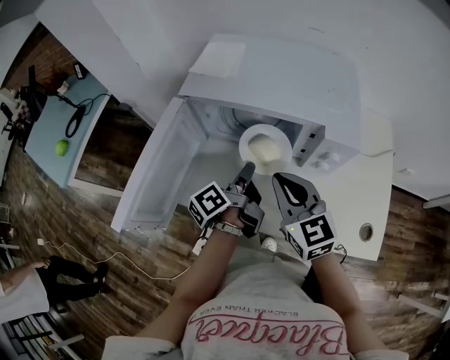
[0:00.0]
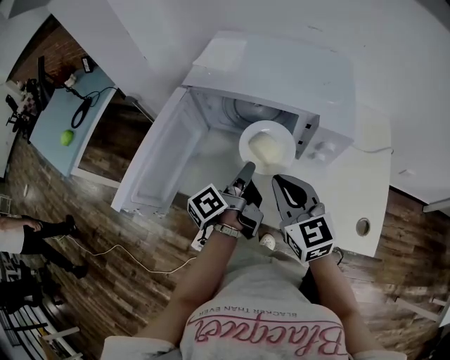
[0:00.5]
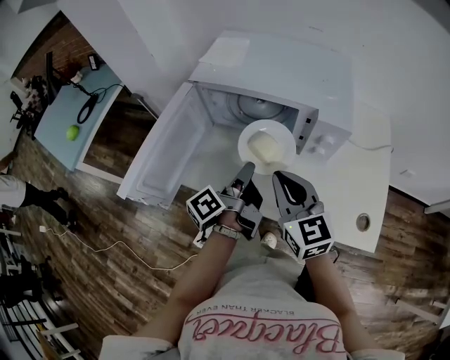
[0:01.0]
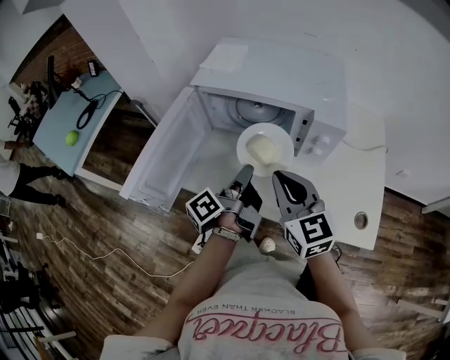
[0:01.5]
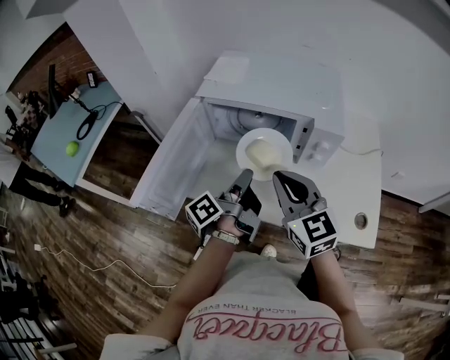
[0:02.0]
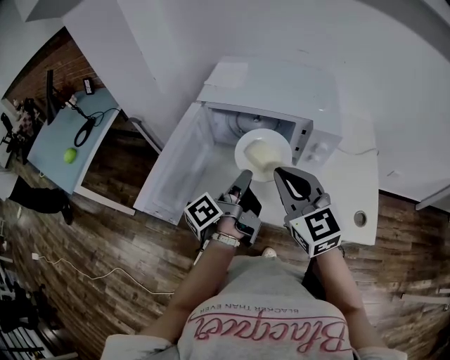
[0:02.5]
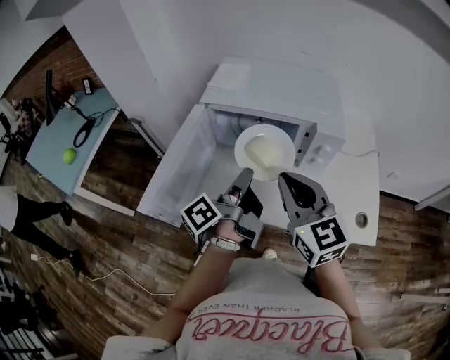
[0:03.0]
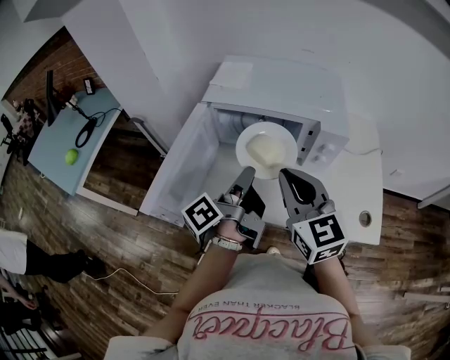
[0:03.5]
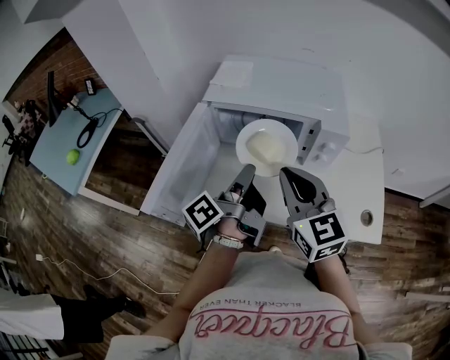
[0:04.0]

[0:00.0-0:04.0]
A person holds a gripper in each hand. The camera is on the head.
0:00.0 to 0:02.0: The grippers both shift backward and upward by roughly 10 cm.
0:02.0 to 0:04.0: The left gripper goes approximately 5 cm upward.

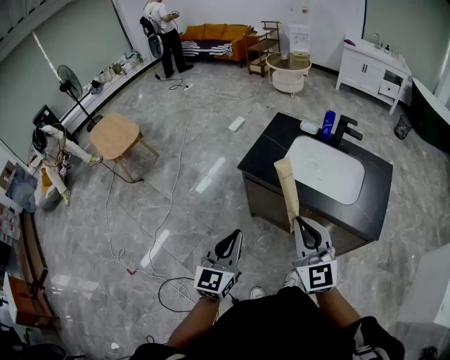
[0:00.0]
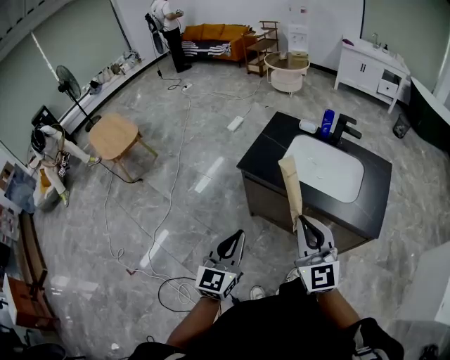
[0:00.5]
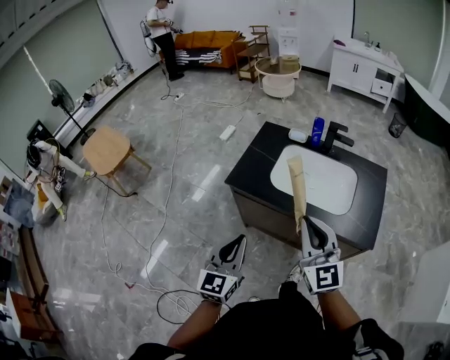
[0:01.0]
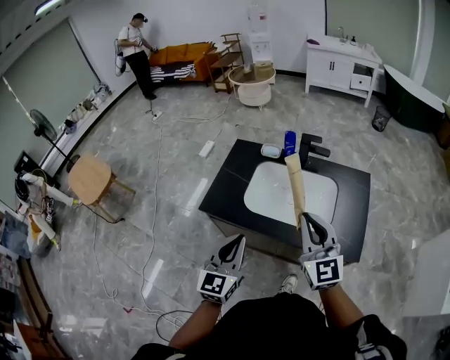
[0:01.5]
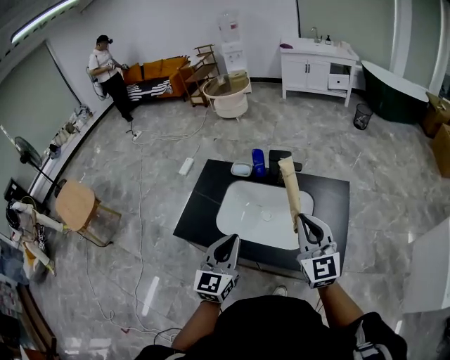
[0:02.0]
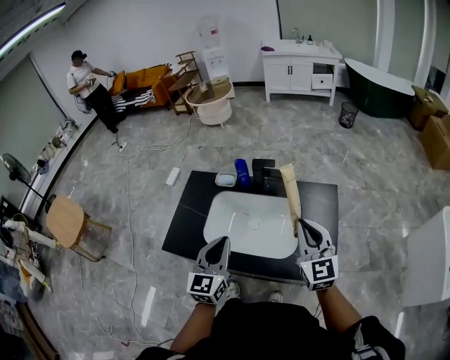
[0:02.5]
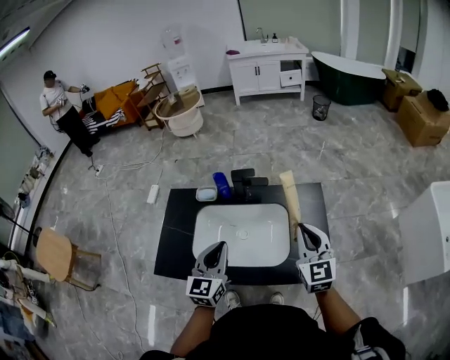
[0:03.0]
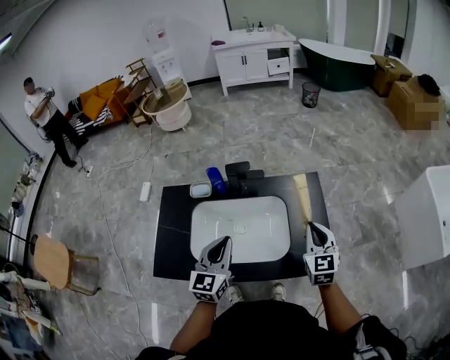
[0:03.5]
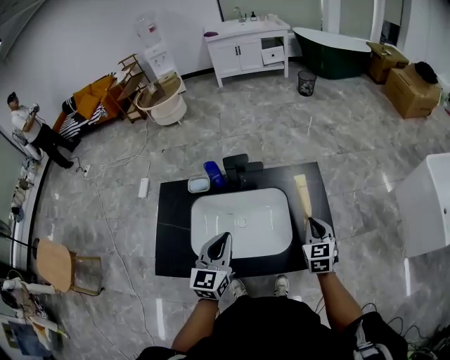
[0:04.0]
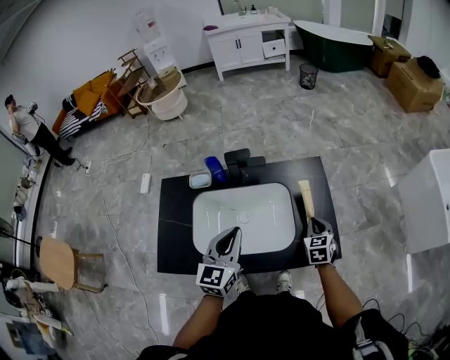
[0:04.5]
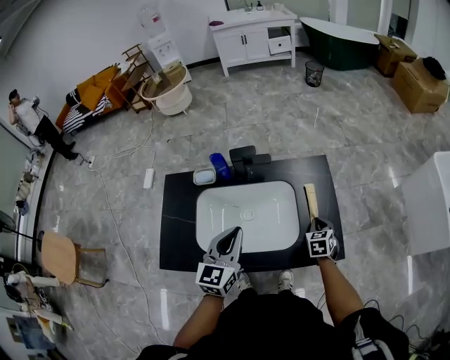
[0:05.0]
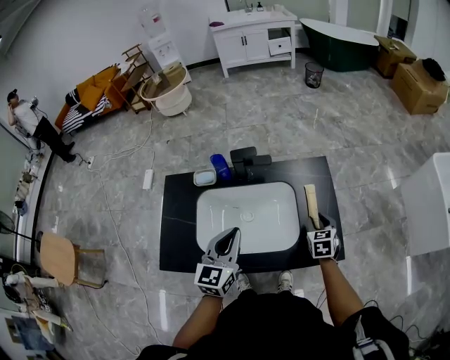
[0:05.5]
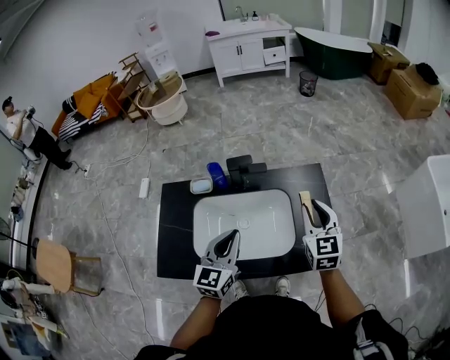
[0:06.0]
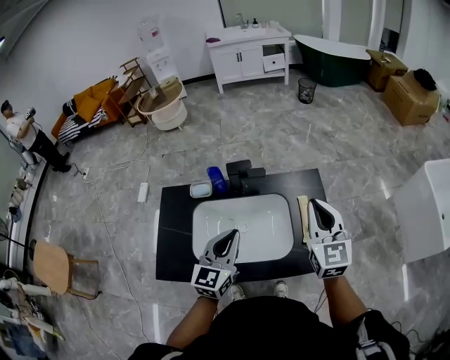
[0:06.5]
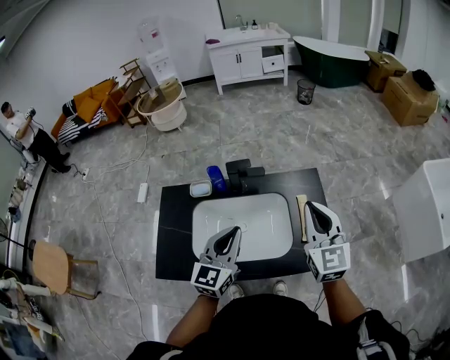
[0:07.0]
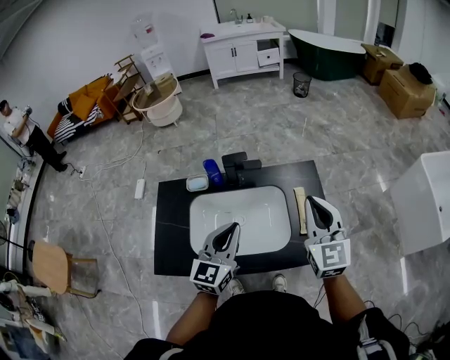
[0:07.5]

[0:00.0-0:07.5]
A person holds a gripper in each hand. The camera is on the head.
0:00.0 to 0:02.0: The left gripper goes approximately 35 cm forward and to the right. The right gripper is displaced to the right and forward by some 35 cm.
0:02.0 to 0:04.0: The right gripper heads downward and to the right, covering some 20 cm, and swivels about 40 degrees. The left gripper is displaced forward by some 10 cm.
0:04.0 to 0:05.5: The right gripper shifts about 10 cm downward, and opens its fingers.
0:05.5 to 0:07.5: The left gripper moves some 5 cm. Meanwhile the right gripper is displaced upward by roughly 30 cm, tilts its fingers some 40 degrees upward, and closes its fingers.

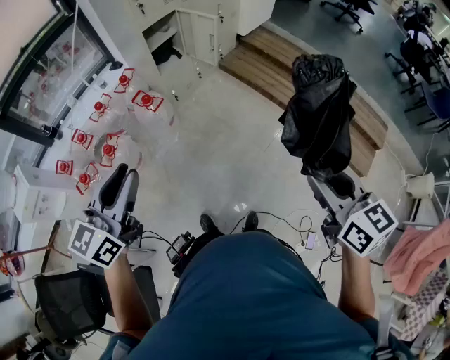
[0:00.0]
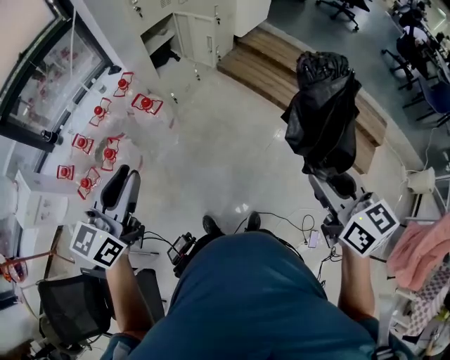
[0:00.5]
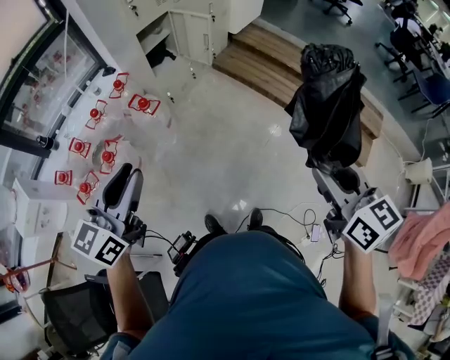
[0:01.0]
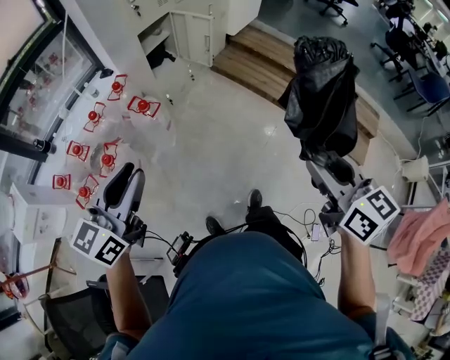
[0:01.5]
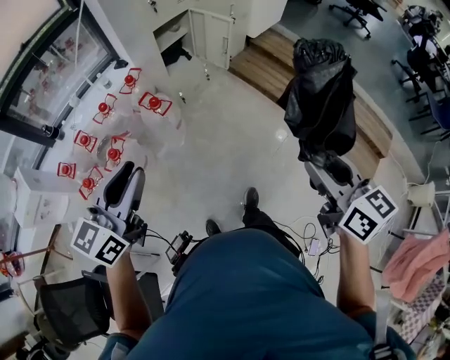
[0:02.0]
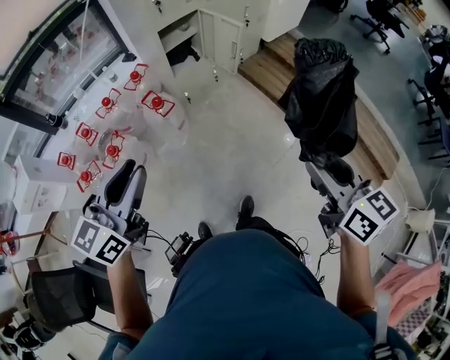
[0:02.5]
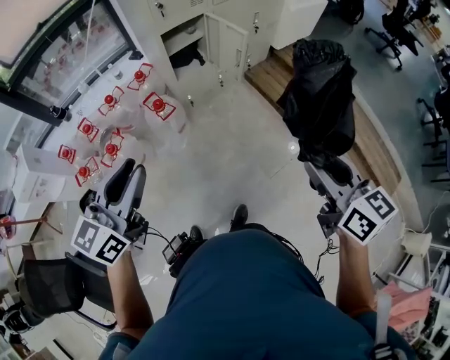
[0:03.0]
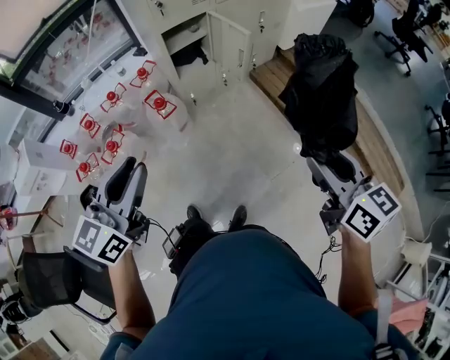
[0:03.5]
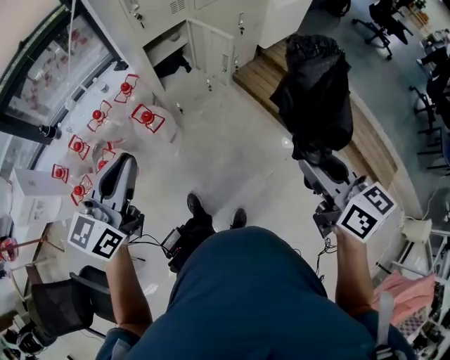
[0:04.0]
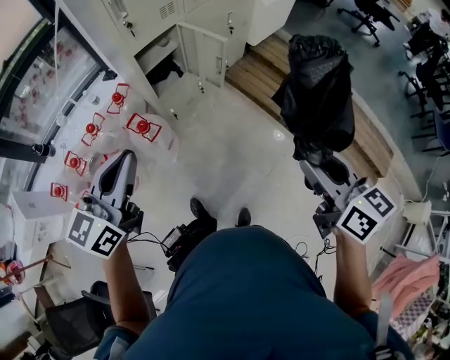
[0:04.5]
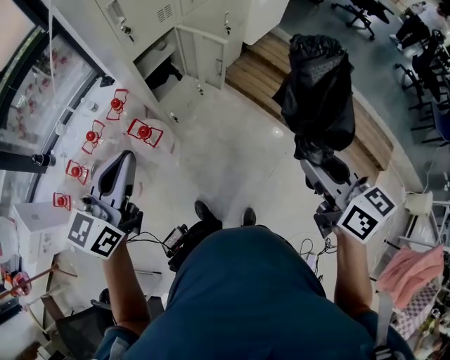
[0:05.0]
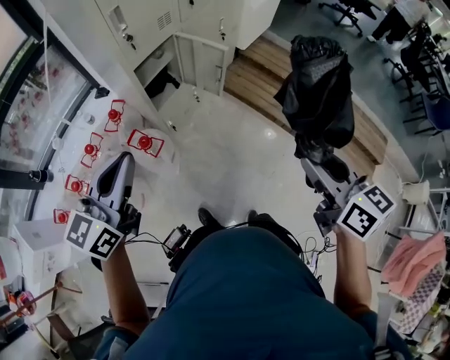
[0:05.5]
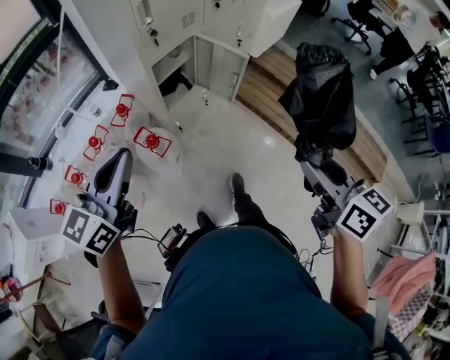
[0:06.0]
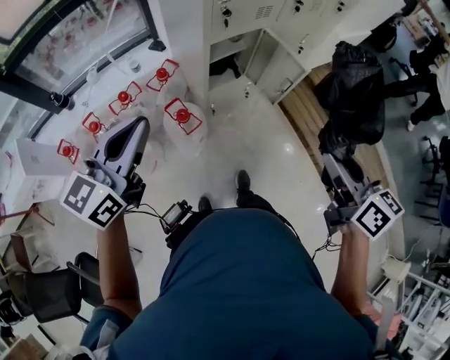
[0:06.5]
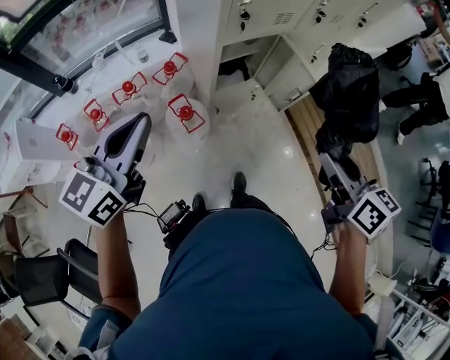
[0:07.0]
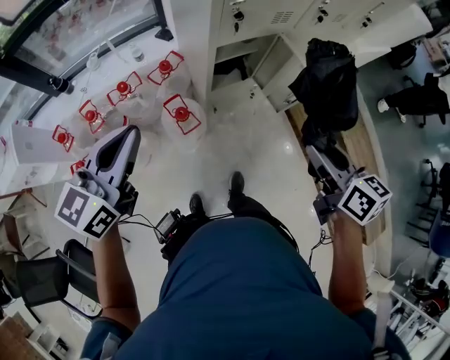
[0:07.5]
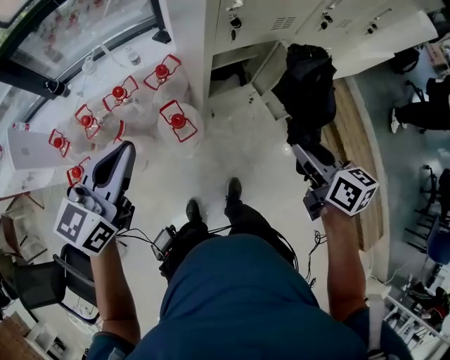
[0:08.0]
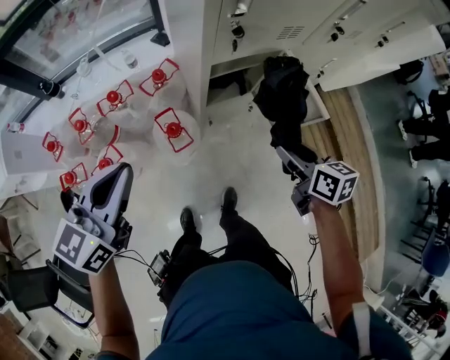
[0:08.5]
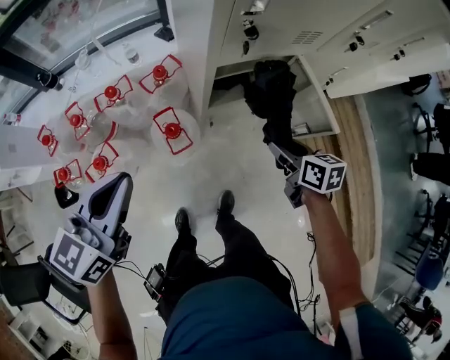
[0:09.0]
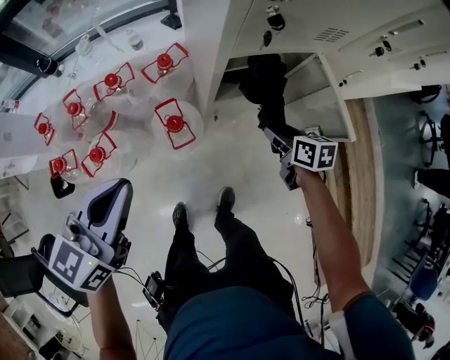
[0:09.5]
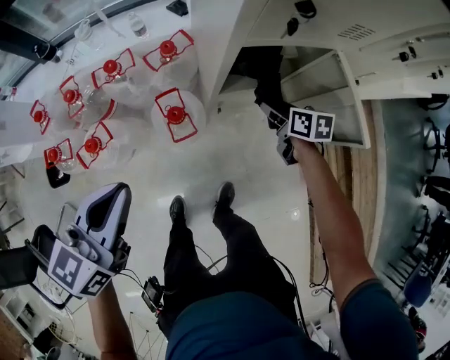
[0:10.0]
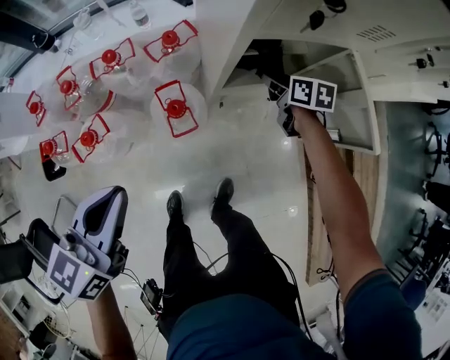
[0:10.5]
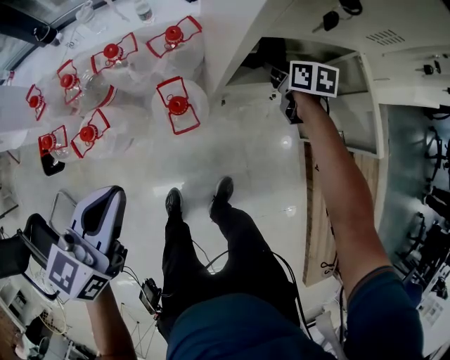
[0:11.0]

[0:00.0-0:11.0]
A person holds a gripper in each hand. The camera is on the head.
0:00.0 to 0:02.0: The two grippers go some 10 cm forward and to the left.
0:02.0 to 0:03.5: The left gripper is displaced to the right and forward by some 20 cm, while the right gripper heads forward and to the right, covering about 25 cm.
0:03.5 to 0:05.5: The right gripper is displaced to the left and forward by approximately 15 cm, while the left gripper shifts some 25 cm forward and to the left, and closes up.
0:05.5 to 0:07.5: The right gripper shifts by approximately 30 cm, and changes its angle by about 30 degrees; the left gripper changes place by some 15 cm, and swivels about 20 degrees.
0:07.5 to 0:09.0: The right gripper goes about 30 cm downward and forward; the left gripper travels downward and forward by approximately 10 cm.
0:09.0 to 0:11.0: The right gripper is displaced forward and downward by roughly 30 cm. The left gripper moves downward, roughly 15 cm.

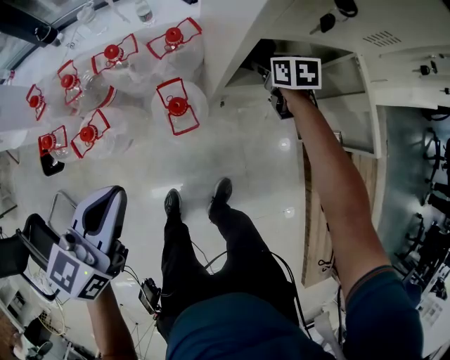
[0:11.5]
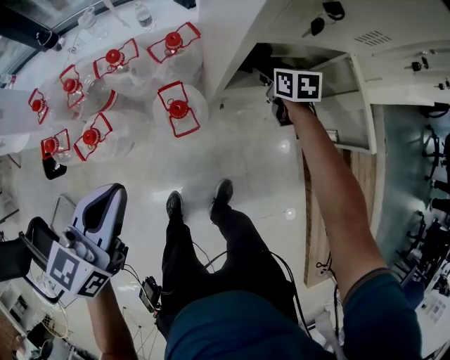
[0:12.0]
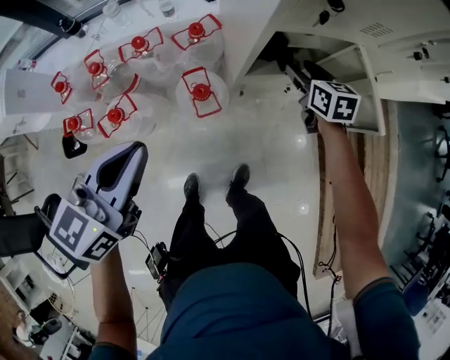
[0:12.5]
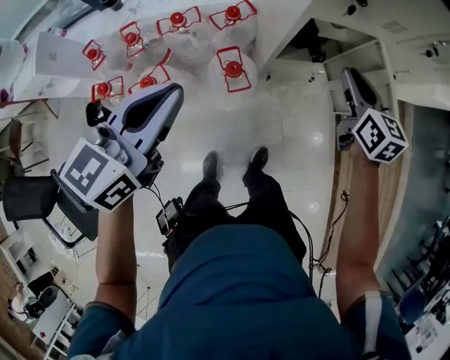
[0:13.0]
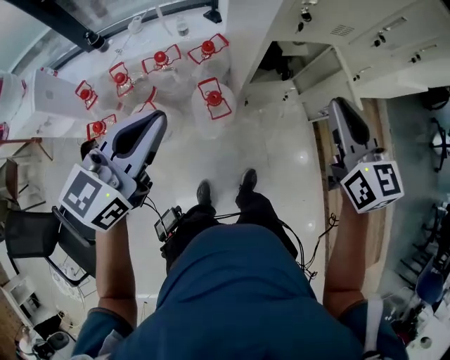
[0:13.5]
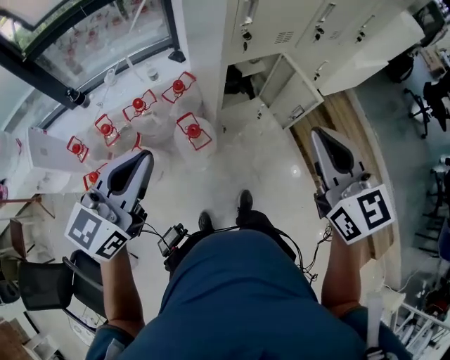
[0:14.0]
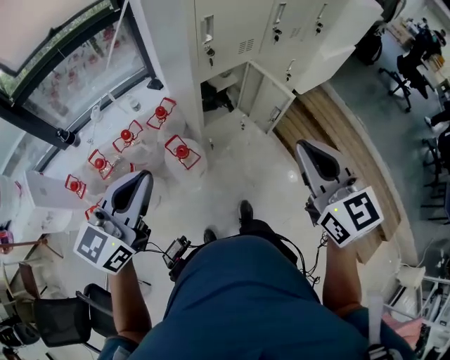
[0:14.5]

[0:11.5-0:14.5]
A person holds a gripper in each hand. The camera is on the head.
0:11.5 to 0:13.0: The right gripper goes approximately 35 cm upward and backward, swivels some 30 degrees, and closes, while the left gripper travels upward by about 15 cm.
0:13.0 to 0:14.5: The left gripper travels upward and backward by roughly 20 cm, and turns by some 20 degrees. The right gripper moves backward and upward, about 40 cm, and rotates roughly 20 degrees.
